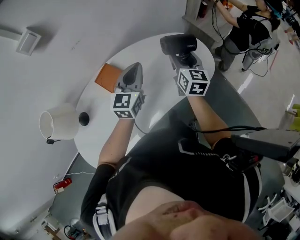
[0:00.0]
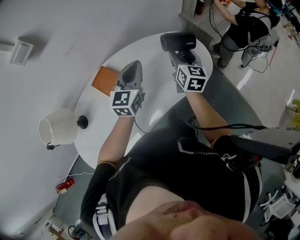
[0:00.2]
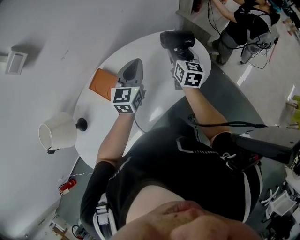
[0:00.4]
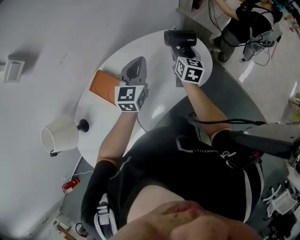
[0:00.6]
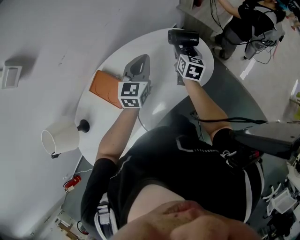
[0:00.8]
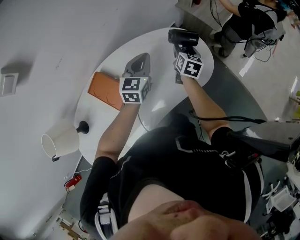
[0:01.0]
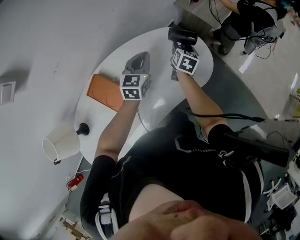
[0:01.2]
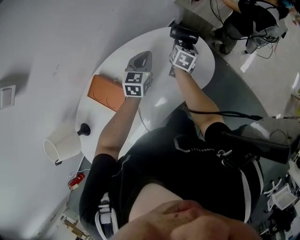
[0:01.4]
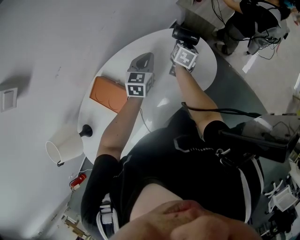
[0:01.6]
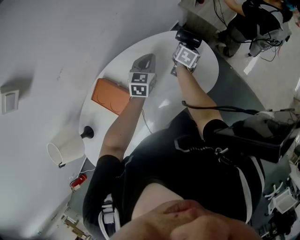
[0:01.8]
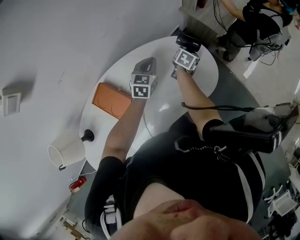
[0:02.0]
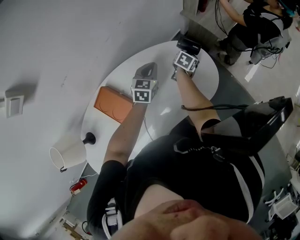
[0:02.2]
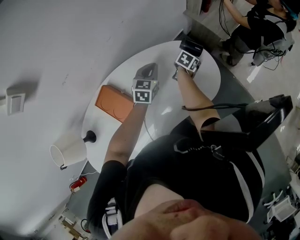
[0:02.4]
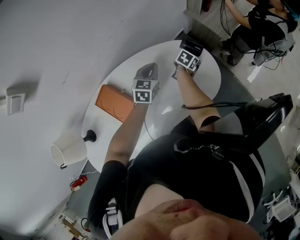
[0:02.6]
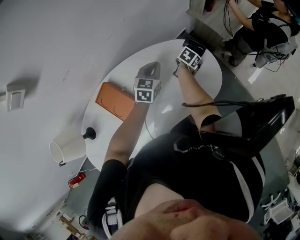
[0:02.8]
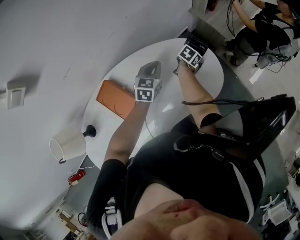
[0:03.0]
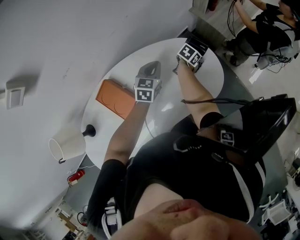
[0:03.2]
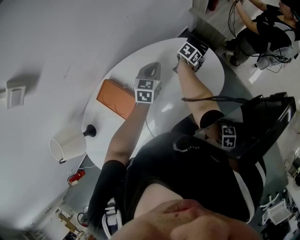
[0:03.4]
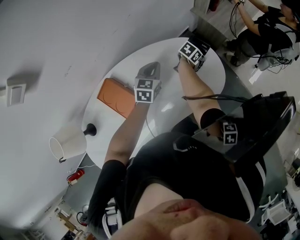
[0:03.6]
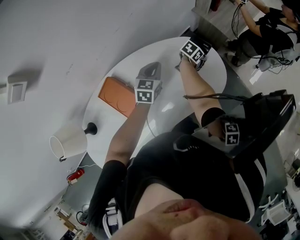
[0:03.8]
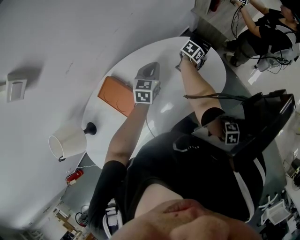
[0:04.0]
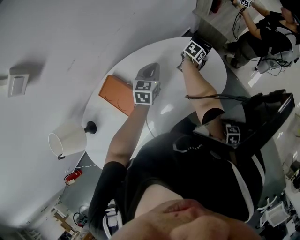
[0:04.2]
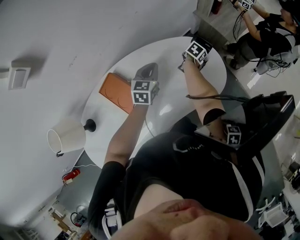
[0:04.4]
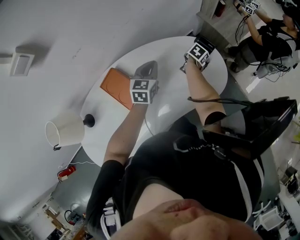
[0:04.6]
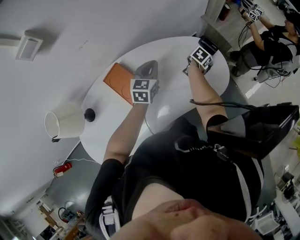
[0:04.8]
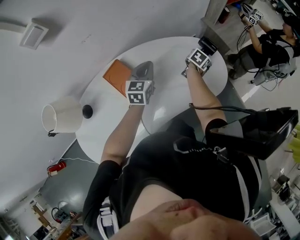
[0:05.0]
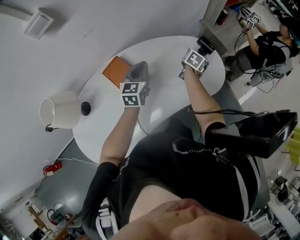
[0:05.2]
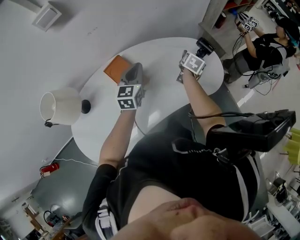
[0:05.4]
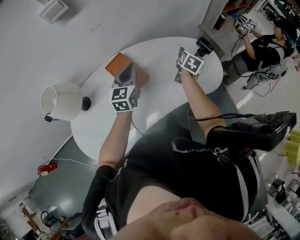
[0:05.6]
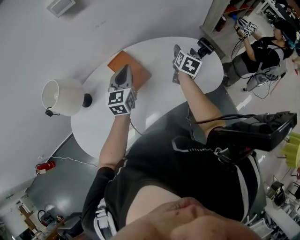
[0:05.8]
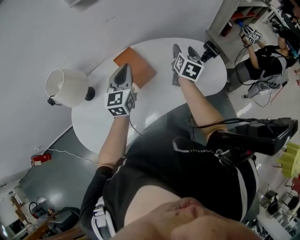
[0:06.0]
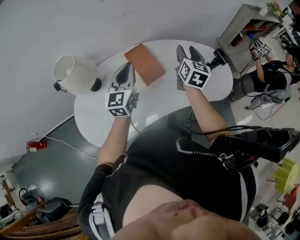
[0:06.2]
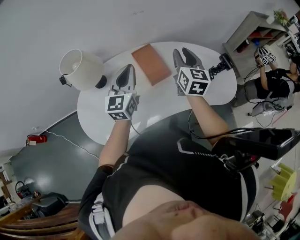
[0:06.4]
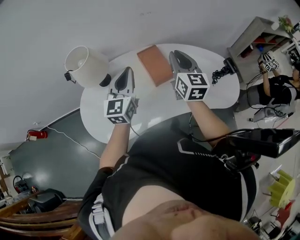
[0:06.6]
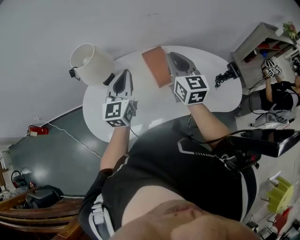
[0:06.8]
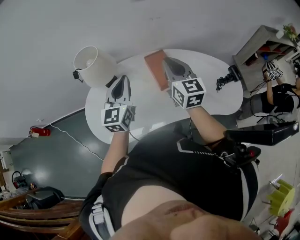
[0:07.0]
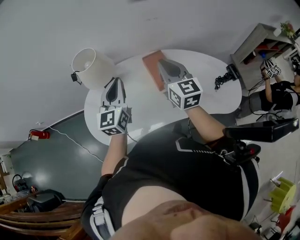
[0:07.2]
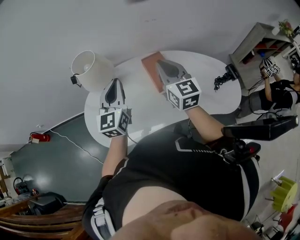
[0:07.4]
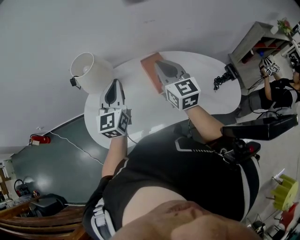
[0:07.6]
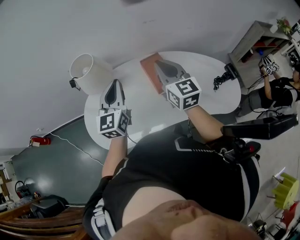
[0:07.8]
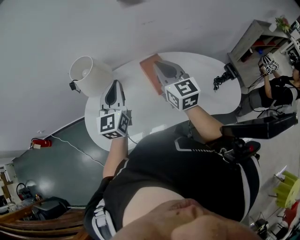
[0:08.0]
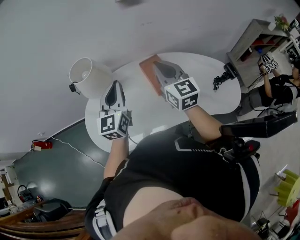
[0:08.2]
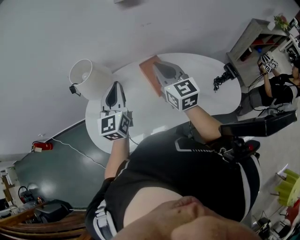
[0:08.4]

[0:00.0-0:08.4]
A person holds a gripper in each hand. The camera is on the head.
0:00.0 to 0:01.4: The left gripper goes some 20 cm forward and downward, and changes its angle by approximately 20 degrees, while the right gripper shifts some 25 cm downward and forward, and rotates some 40 degrees.
0:01.4 to 0:02.8: The right gripper travels downward by about 10 cm, and turns by roughly 20 degrees.
0:02.8 to 0:04.2: The left gripper moves roughly 5 cm.
0:04.2 to 0:05.6: The left gripper goes approximately 25 cm backward, upward and to the left, and swivels some 30 degrees. The right gripper goes roughly 25 cm upward, backward and to the left, and turns by roughly 30 degrees.
0:05.6 to 0:07.0: The right gripper ends up roughly 40 cm from where it was, changes its angle by approximately 70 degrees, and closes up; the left gripper ends up about 25 cm from where it was, and changes its angle by about 30 degrees.
0:07.0 to 0:08.4: The grippers move only a little.

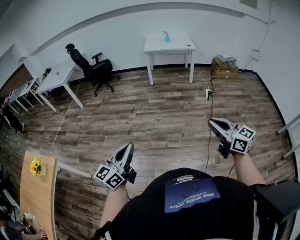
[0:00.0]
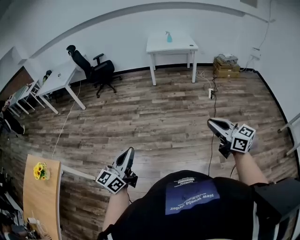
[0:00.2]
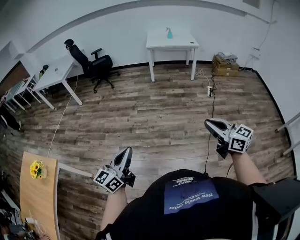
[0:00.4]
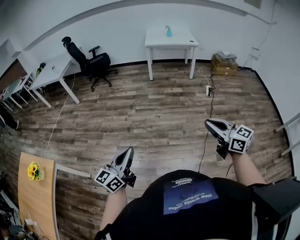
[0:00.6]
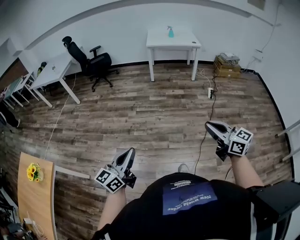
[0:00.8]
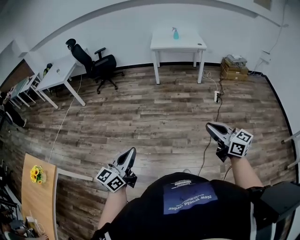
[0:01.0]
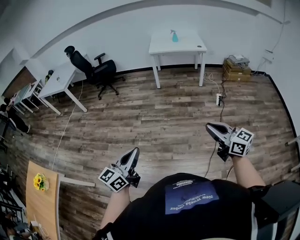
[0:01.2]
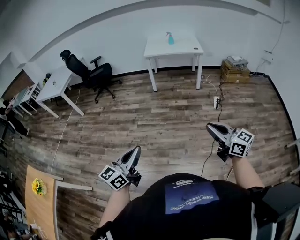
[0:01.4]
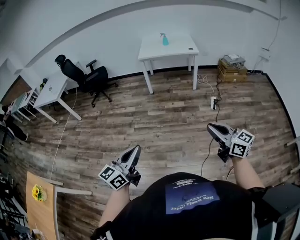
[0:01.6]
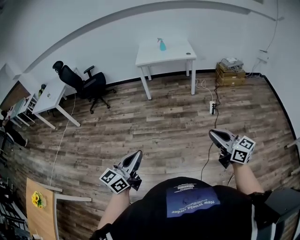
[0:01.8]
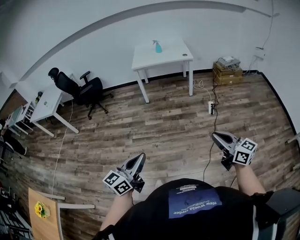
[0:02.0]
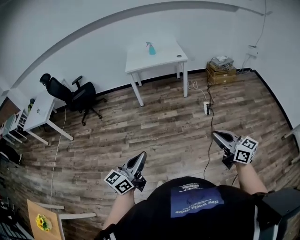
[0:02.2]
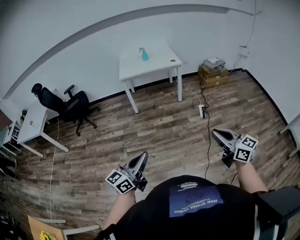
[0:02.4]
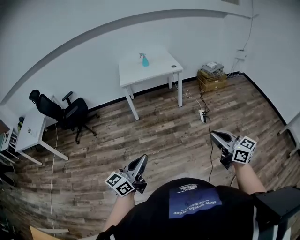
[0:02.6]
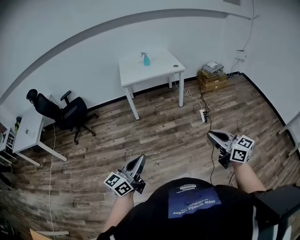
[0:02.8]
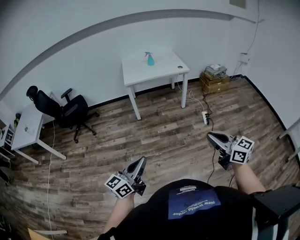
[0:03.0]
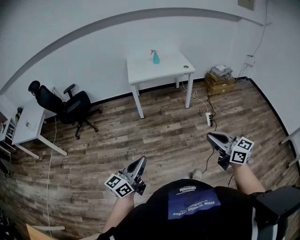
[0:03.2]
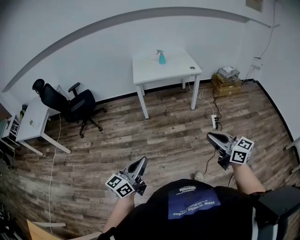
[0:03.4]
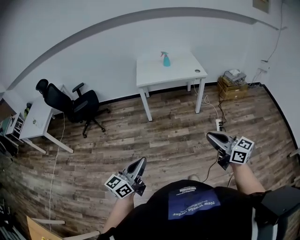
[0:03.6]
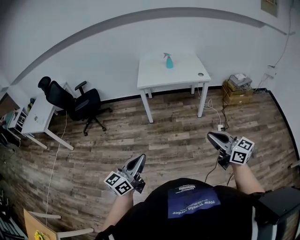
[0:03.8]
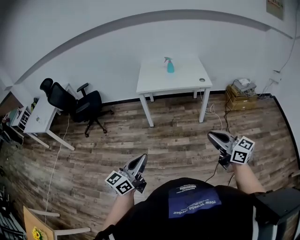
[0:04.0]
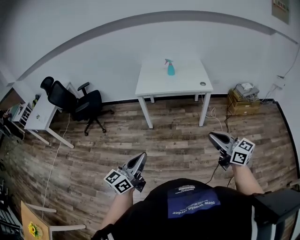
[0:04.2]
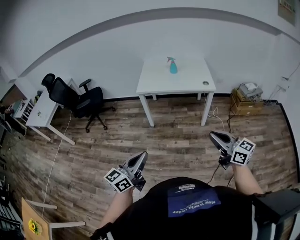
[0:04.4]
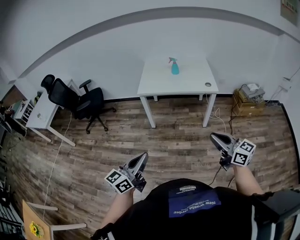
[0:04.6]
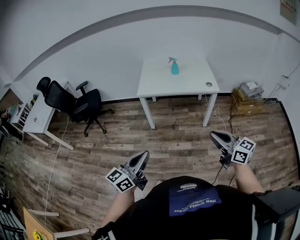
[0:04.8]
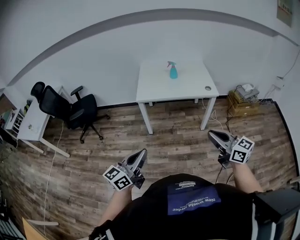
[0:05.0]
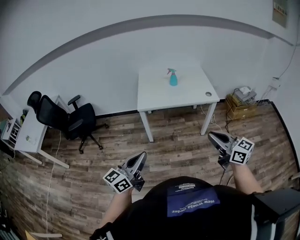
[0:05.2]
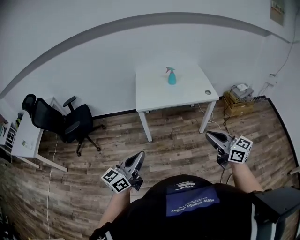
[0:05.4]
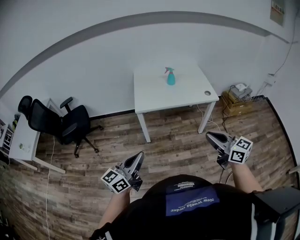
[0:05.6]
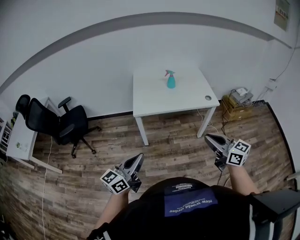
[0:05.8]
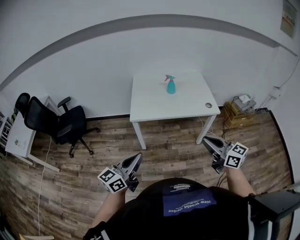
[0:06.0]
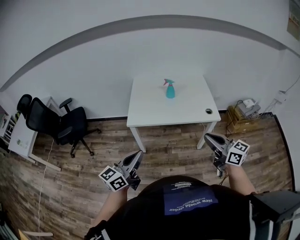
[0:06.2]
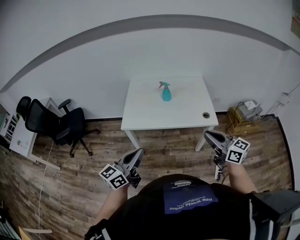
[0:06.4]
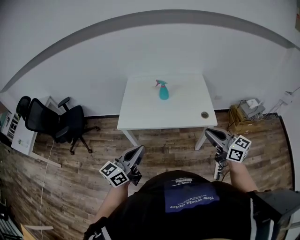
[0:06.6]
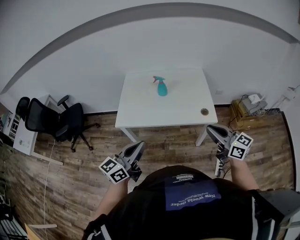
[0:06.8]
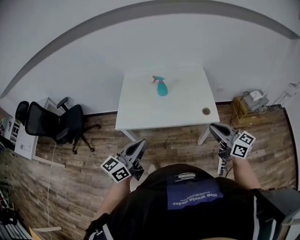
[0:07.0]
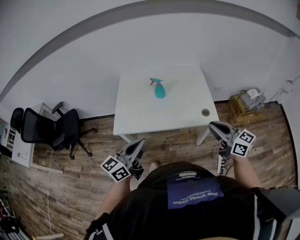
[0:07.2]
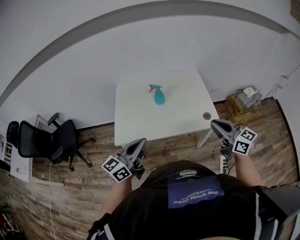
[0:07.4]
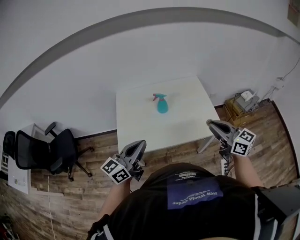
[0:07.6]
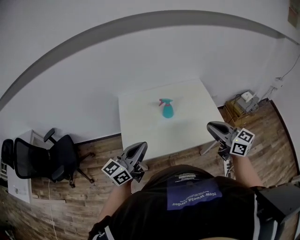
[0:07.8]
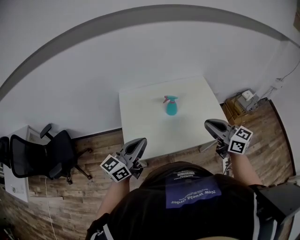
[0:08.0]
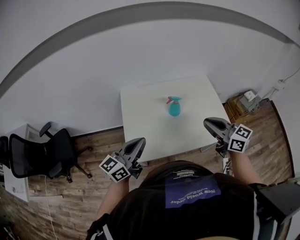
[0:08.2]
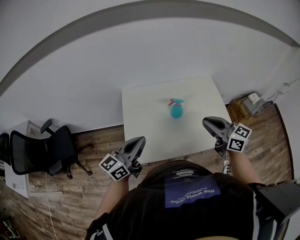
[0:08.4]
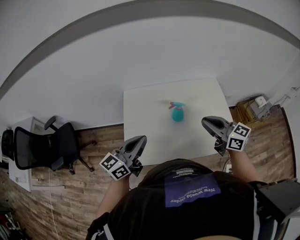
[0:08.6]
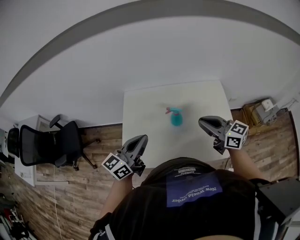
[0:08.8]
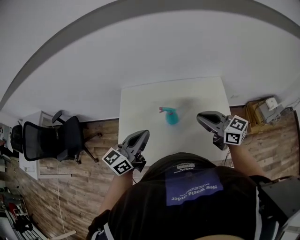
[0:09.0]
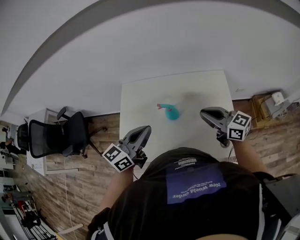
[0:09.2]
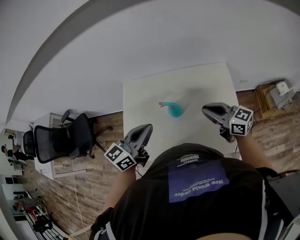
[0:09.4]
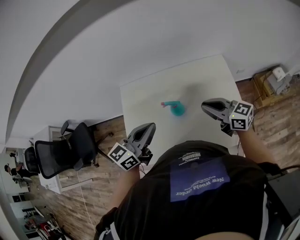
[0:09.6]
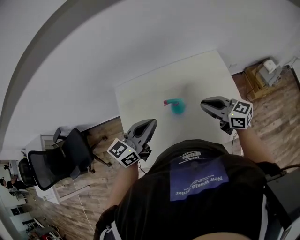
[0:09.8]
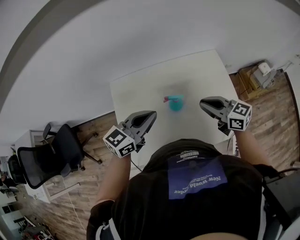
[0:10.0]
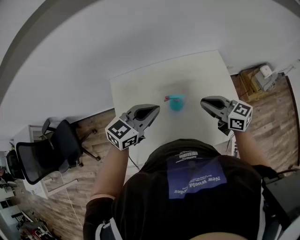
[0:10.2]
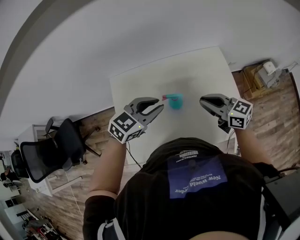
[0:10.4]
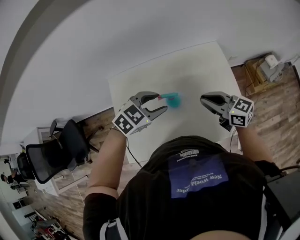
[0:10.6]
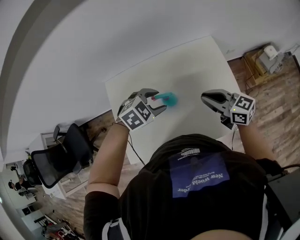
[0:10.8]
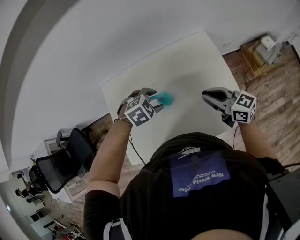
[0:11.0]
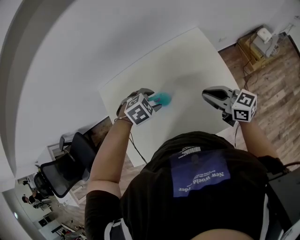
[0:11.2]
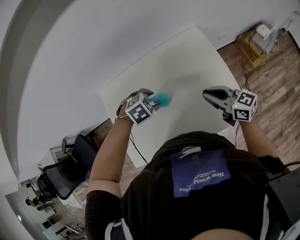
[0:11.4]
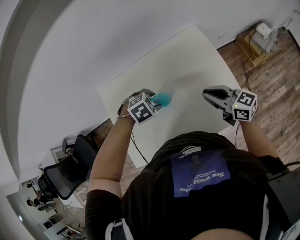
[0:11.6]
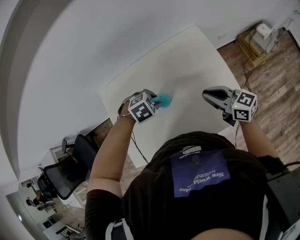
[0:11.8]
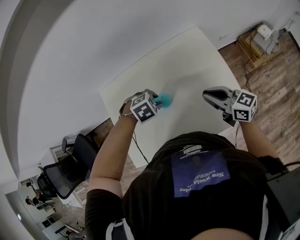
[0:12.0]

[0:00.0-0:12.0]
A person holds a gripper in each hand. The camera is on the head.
0:00.0 to 0:01.6: The grippers both shift forward and to the right by roughly 30 cm.
0:01.6 to 0:03.0: Both grippers travel together forward and to the left, roughly 25 cm.
0:03.0 to 0:04.4: Both grippers move forward and to the right, some 35 cm.
0:04.4 to 0:06.0: The right gripper goes roughly 30 cm forward and to the left, while the left gripper travels forward by approximately 30 cm.
0:06.0 to 0:07.6: The two grippers go some 30 cm forward.
0:07.6 to 0:09.0: Both grippers move forward, roughly 25 cm. The right gripper rotates some 20 degrees.
0:09.0 to 0:10.4: The left gripper travels forward and downward by approximately 10 cm, and rotates about 50 degrees; the right gripper goes roughly 5 cm downward.
0:10.4 to 0:12.0: The right gripper changes place by about 10 cm; the left gripper heads downward, covering approximately 15 cm, and tips its fingers downward by approximately 50 degrees.

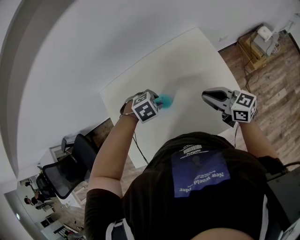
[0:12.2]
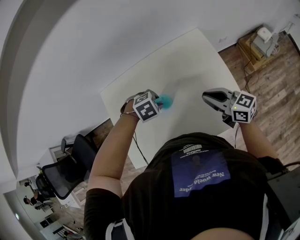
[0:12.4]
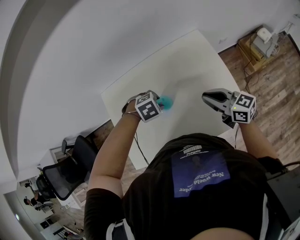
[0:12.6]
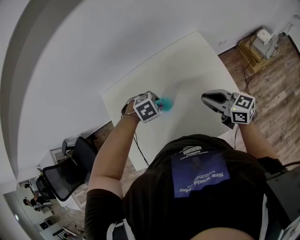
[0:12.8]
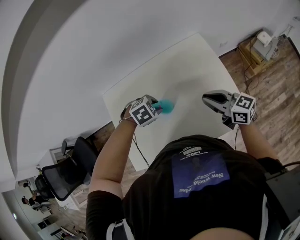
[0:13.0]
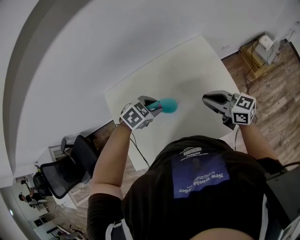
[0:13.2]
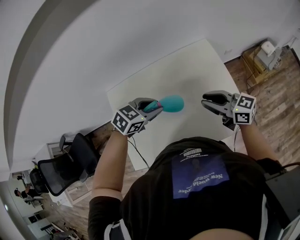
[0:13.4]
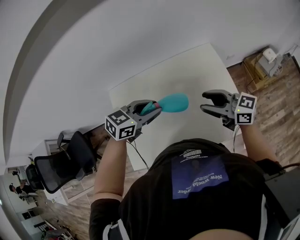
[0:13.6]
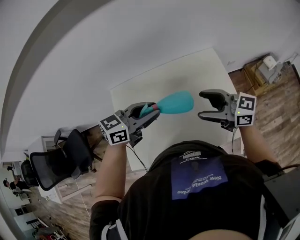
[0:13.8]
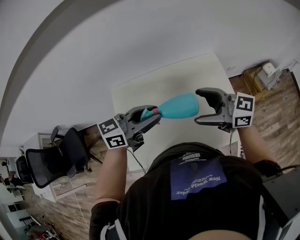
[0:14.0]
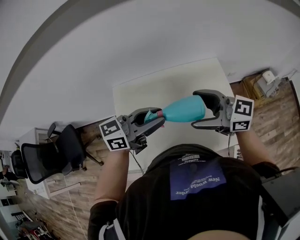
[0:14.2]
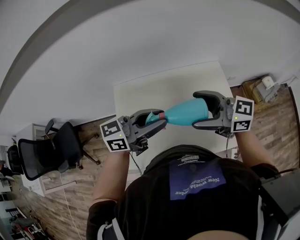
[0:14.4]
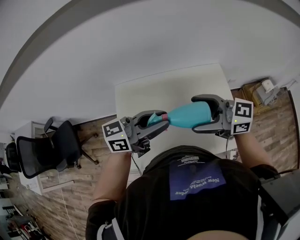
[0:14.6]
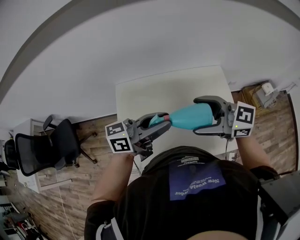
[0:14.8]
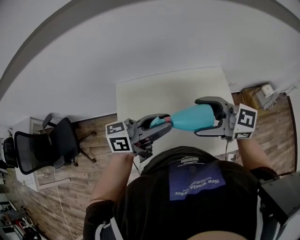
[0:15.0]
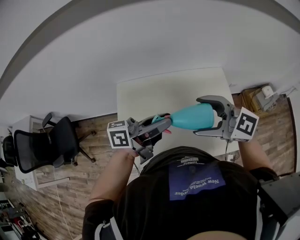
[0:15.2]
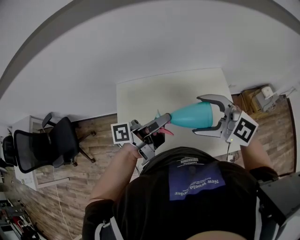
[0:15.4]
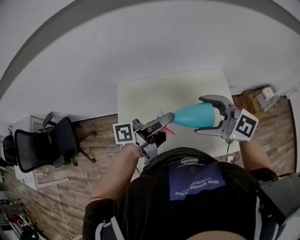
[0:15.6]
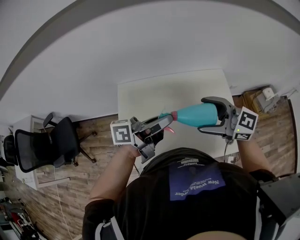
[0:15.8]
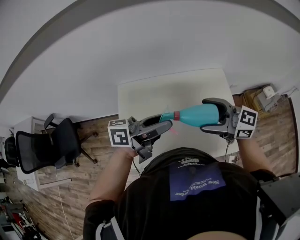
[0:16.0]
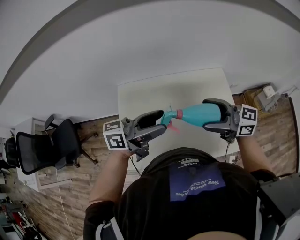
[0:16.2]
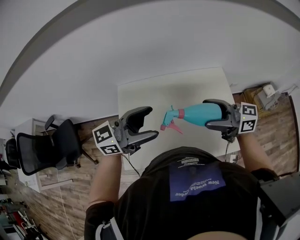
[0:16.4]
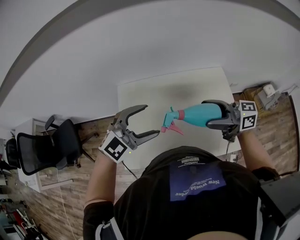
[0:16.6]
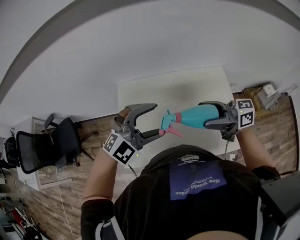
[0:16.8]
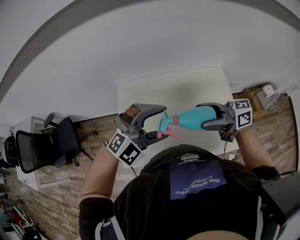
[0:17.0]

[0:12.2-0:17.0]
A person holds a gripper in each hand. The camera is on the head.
0:12.2 to 0:13.8: The right gripper travels upward by approximately 10 cm, rotates approximately 20 degrees, and opens. Meanwhile the left gripper is displaced upward by about 20 cm, and angles its fingers upward, by approximately 60 degrees.
0:13.8 to 0:15.4: The right gripper shifts by roughly 10 cm, and turns by some 40 degrees. Meanwhile the left gripper twists some 50 degrees counterclockwise, seen from behind.
0:15.4 to 0:17.0: The left gripper rotates around the line of its fingers by about 120 degrees, clockwise from behind, and opens its fingers. Meanwhile the right gripper changes place by some 5 cm, and twists roughly 50 degrees clockwise, seen from behind.
